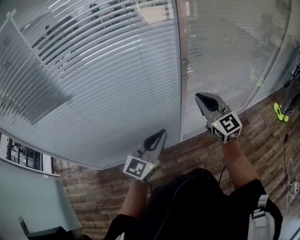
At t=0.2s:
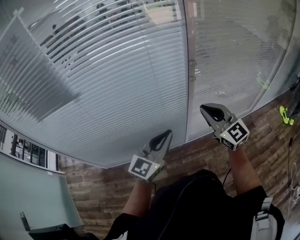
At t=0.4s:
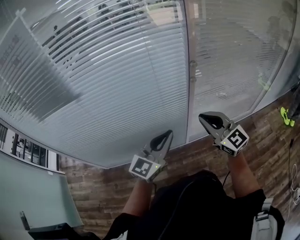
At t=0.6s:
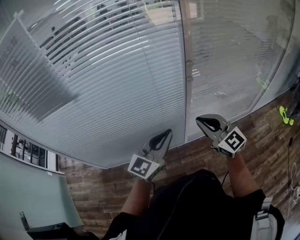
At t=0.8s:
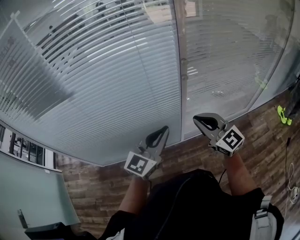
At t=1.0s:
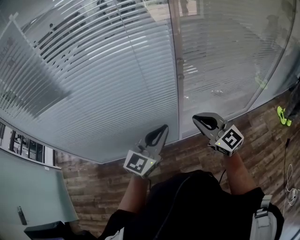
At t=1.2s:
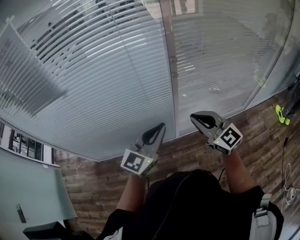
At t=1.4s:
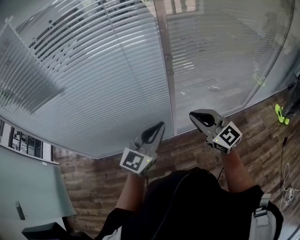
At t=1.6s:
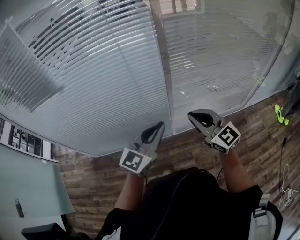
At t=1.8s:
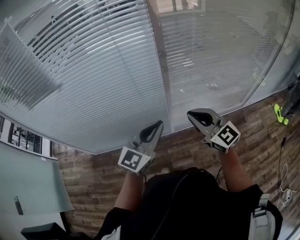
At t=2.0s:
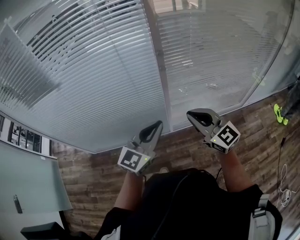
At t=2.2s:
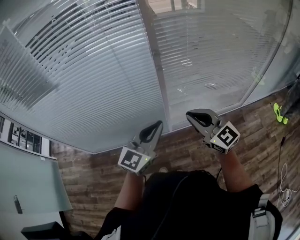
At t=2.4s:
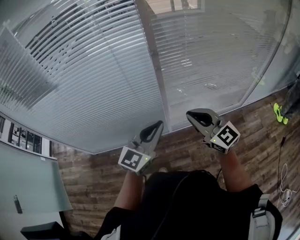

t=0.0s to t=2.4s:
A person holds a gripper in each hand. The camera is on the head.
t=0.0s to t=1.2s: The left gripper is displaced to the right by approximately 5 cm. The right gripper travels backward by some 10 cm.
t=1.2s to t=2.4s: Both grippers travel together to the right, roughly 5 cm.

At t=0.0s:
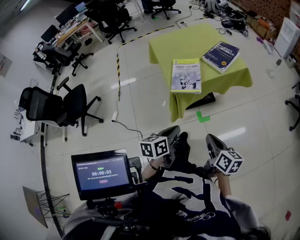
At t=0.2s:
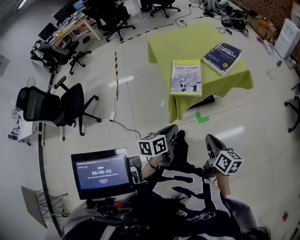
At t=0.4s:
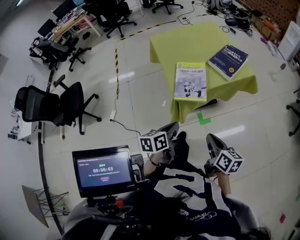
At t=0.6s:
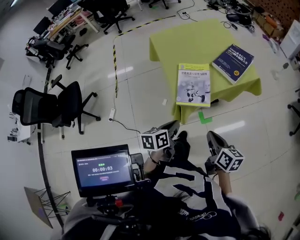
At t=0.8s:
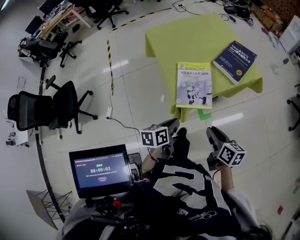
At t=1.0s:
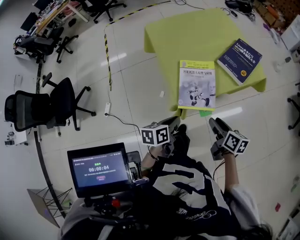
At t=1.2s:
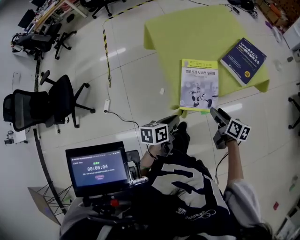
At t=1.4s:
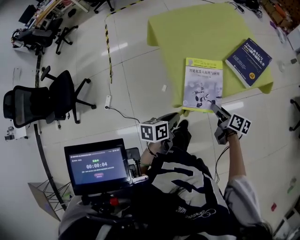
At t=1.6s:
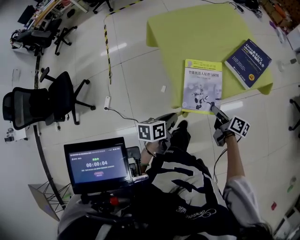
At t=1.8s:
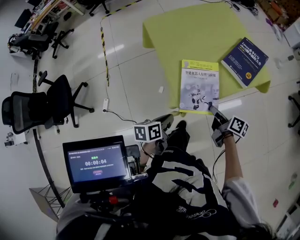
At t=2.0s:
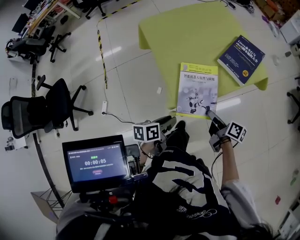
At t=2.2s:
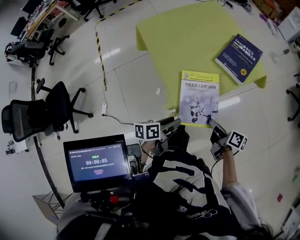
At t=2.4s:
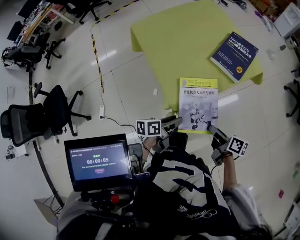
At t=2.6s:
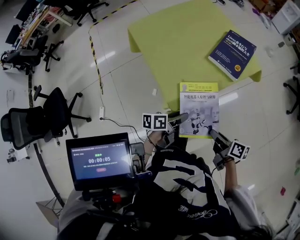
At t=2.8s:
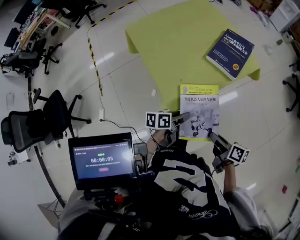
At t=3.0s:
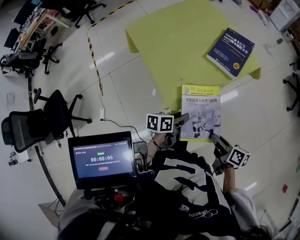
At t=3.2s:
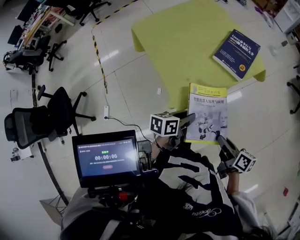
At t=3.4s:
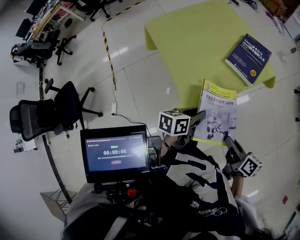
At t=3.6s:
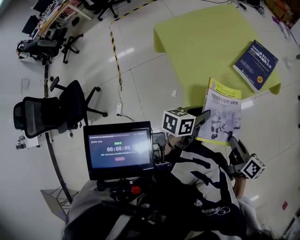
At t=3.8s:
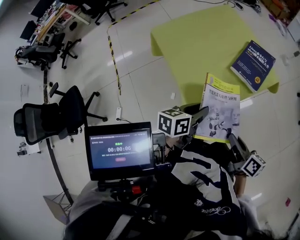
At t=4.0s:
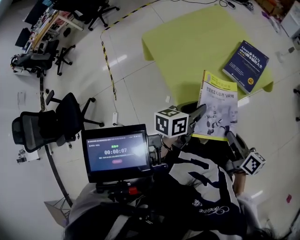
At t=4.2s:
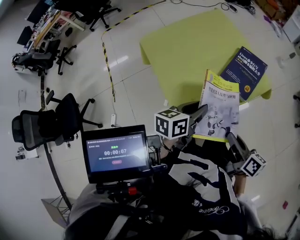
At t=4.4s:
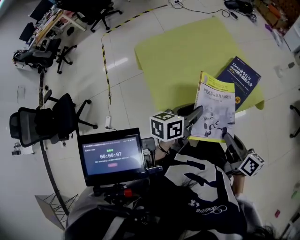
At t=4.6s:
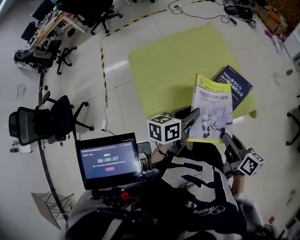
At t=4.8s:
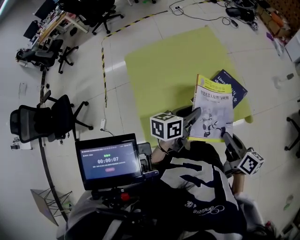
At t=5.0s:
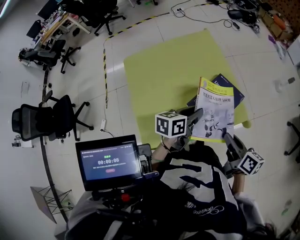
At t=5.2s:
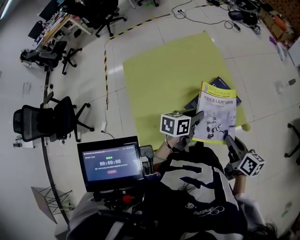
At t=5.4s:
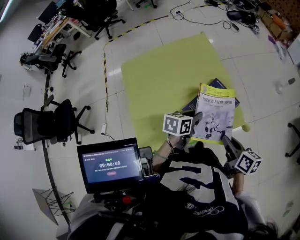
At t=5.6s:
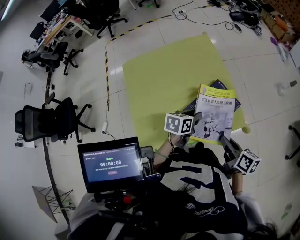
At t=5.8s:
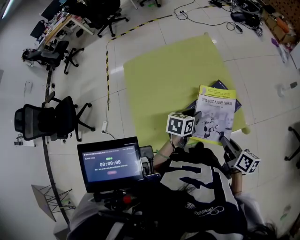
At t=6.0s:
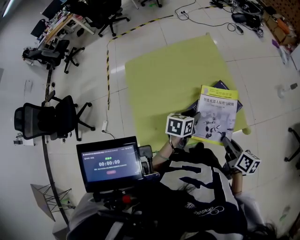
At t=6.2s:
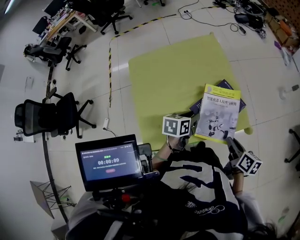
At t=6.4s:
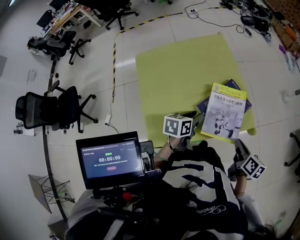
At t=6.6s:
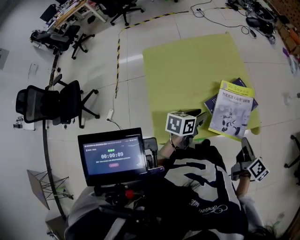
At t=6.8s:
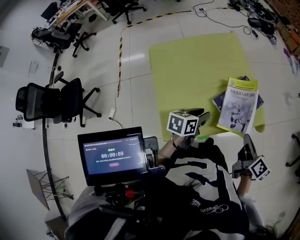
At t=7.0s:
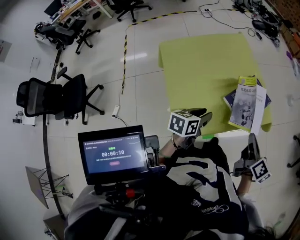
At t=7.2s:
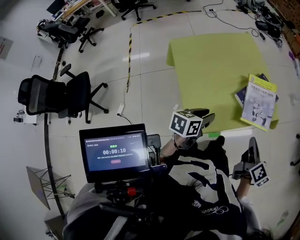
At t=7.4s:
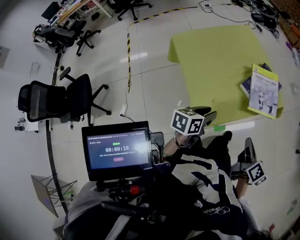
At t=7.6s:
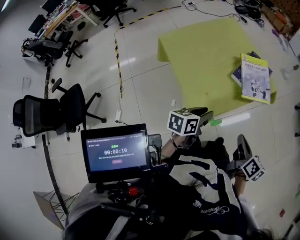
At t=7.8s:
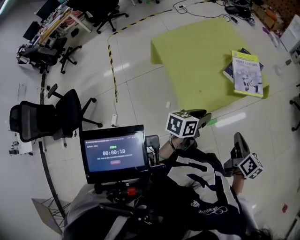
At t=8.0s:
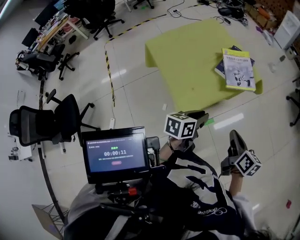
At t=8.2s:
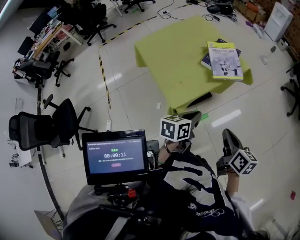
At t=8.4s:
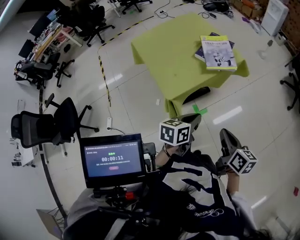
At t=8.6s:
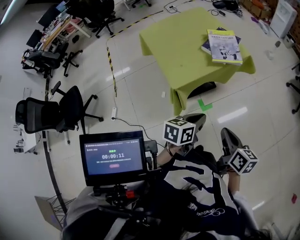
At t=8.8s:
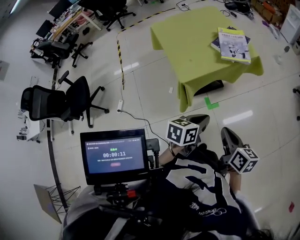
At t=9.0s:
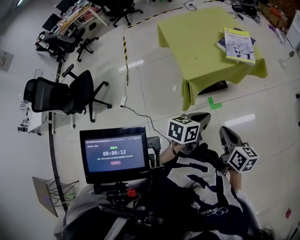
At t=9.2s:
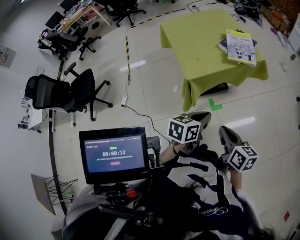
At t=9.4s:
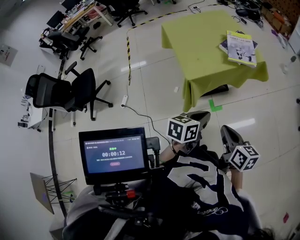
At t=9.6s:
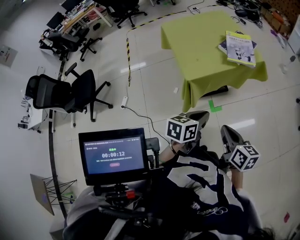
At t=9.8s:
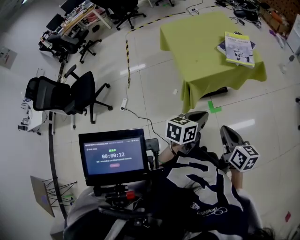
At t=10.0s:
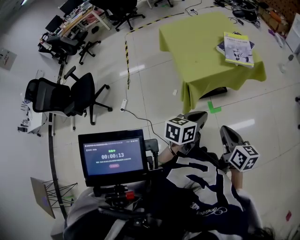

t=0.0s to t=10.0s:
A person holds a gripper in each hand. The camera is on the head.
t=0.0s to t=1.4s: The left gripper shifts about 25 cm forward, downward and to the left. The right gripper heads forward and downward, covering approximately 35 cm, swivels roughly 20 degrees, and opens its fingers.
t=1.4s to t=2.8s: The left gripper travels to the right by some 5 cm, rotates about 20 degrees, and opens; the right gripper heads backward and upward, covering about 15 cm, and closes up.
t=2.8s to t=4.2s: The right gripper moves forward and upward, some 15 cm. The left gripper shifts approximately 20 cm upward and forward, and swivels roughly 20 degrees.
t=4.2s to t=5.8s: The left gripper goes some 25 cm forward, to the right and downward, and swivels some 20 degrees. Meanwhile the right gripper is displaced forward and to the right by roughly 25 cm.
t=5.8s to t=7.2s: The left gripper shifts approximately 25 cm backward and to the left. Meanwhile the right gripper shifts approximately 15 cm backward and to the left, and changes its angle by some 30 degrees.
t=7.2s to t=8.6s: The right gripper goes some 30 cm backward. The left gripper heads backward and to the right, covering about 30 cm, and closes.
t=8.6s to t=10.0s: There are only small adjustments of the grippers.

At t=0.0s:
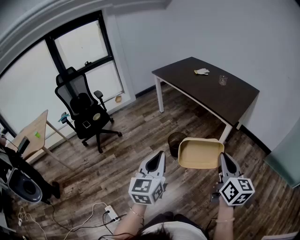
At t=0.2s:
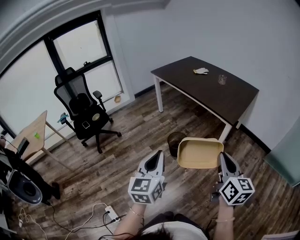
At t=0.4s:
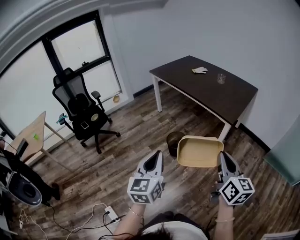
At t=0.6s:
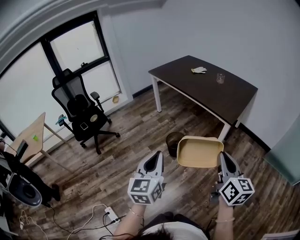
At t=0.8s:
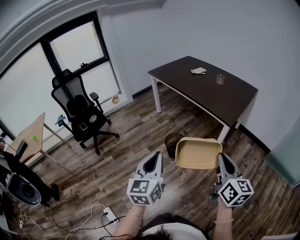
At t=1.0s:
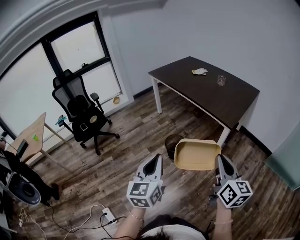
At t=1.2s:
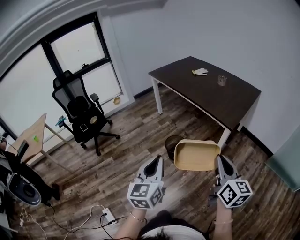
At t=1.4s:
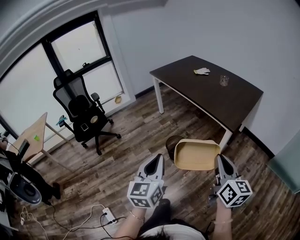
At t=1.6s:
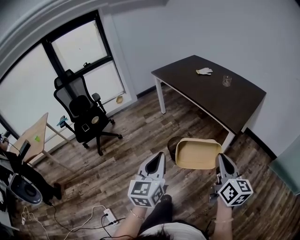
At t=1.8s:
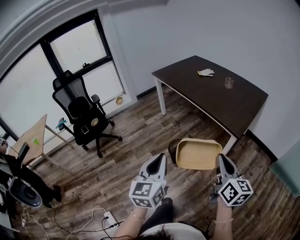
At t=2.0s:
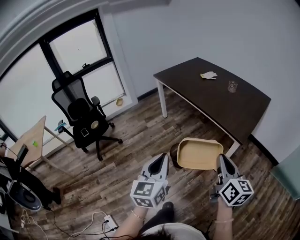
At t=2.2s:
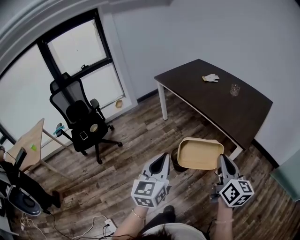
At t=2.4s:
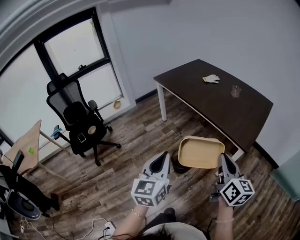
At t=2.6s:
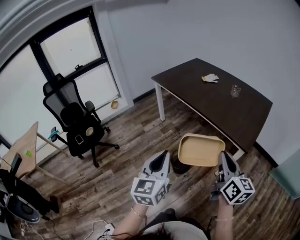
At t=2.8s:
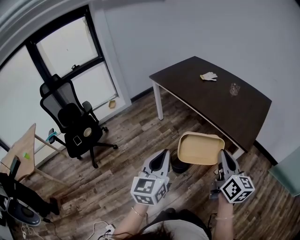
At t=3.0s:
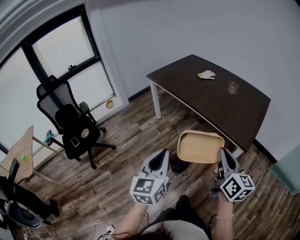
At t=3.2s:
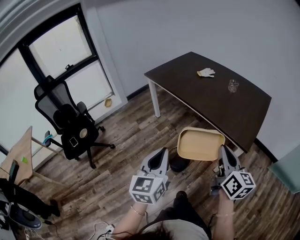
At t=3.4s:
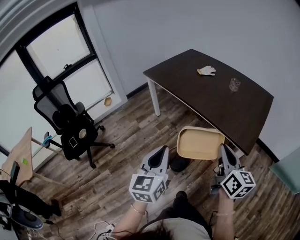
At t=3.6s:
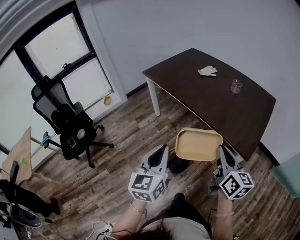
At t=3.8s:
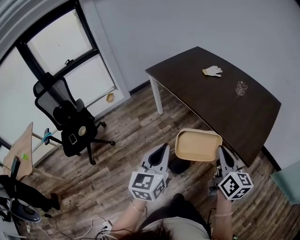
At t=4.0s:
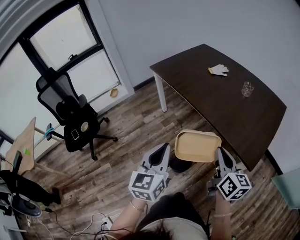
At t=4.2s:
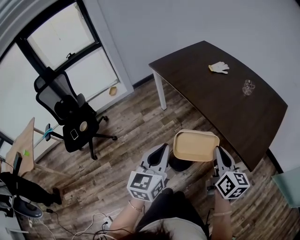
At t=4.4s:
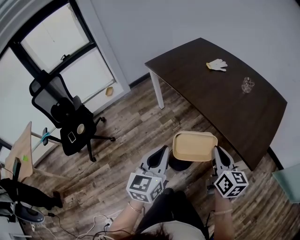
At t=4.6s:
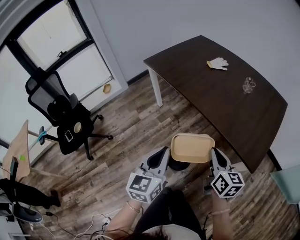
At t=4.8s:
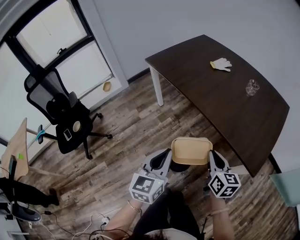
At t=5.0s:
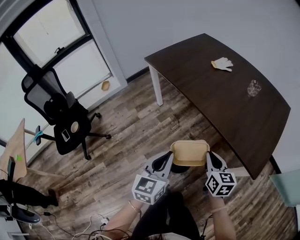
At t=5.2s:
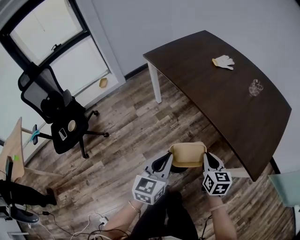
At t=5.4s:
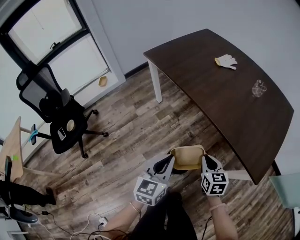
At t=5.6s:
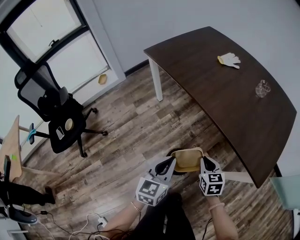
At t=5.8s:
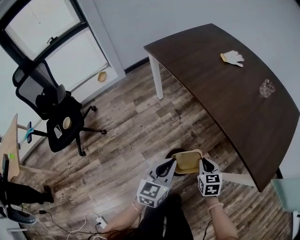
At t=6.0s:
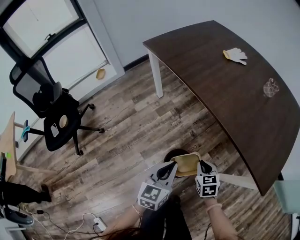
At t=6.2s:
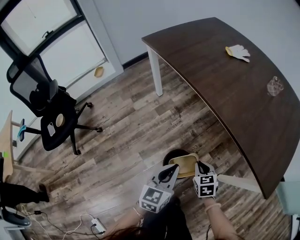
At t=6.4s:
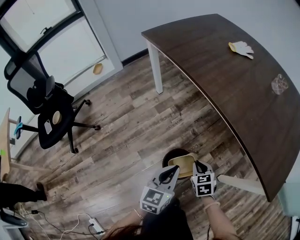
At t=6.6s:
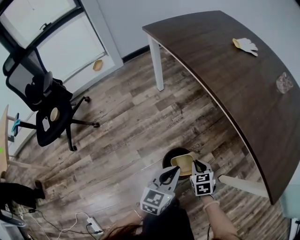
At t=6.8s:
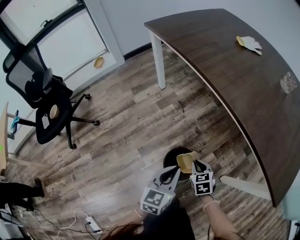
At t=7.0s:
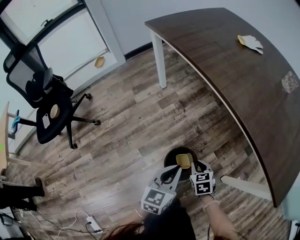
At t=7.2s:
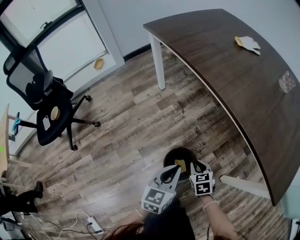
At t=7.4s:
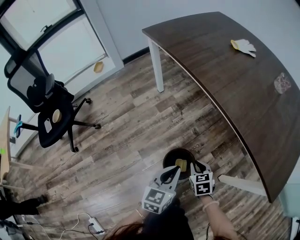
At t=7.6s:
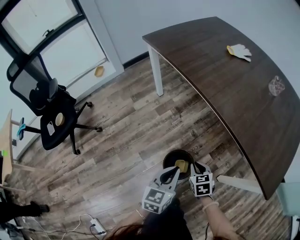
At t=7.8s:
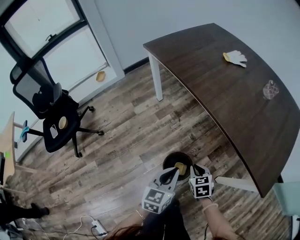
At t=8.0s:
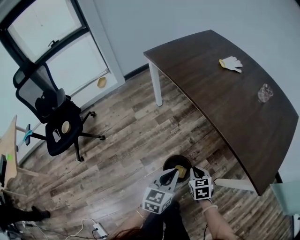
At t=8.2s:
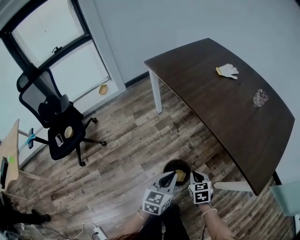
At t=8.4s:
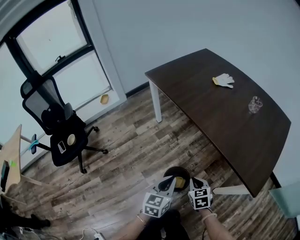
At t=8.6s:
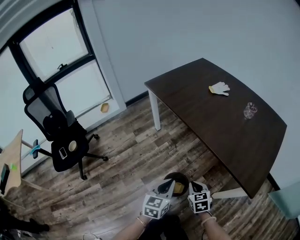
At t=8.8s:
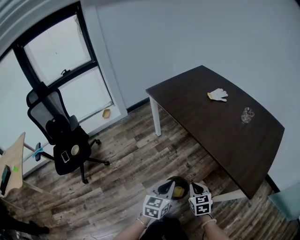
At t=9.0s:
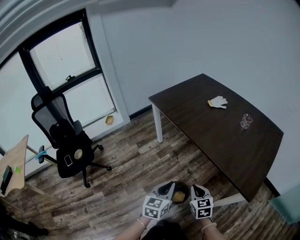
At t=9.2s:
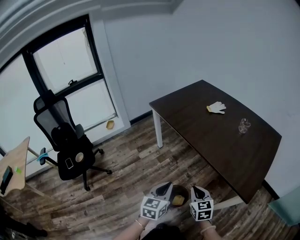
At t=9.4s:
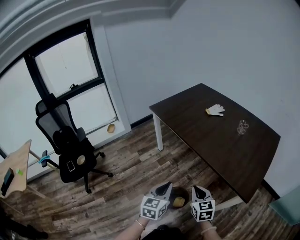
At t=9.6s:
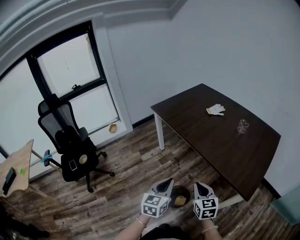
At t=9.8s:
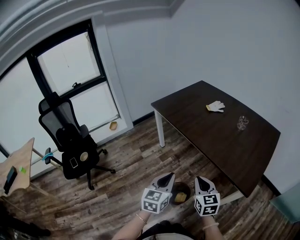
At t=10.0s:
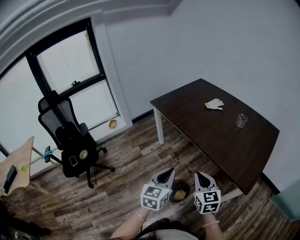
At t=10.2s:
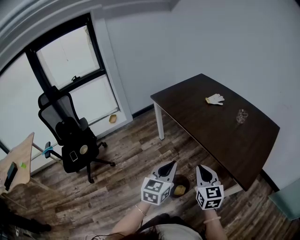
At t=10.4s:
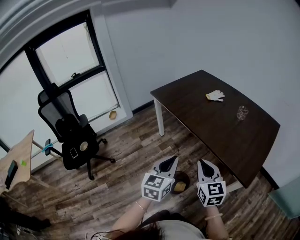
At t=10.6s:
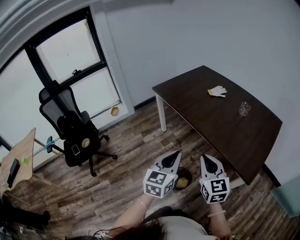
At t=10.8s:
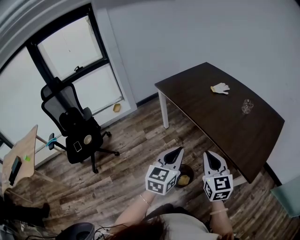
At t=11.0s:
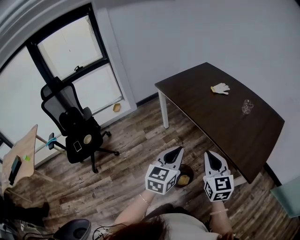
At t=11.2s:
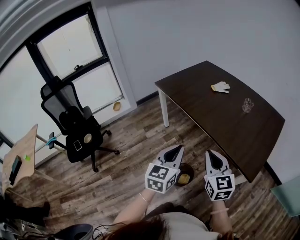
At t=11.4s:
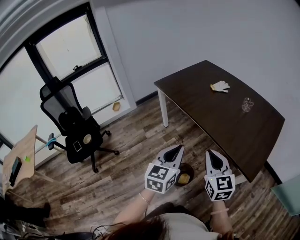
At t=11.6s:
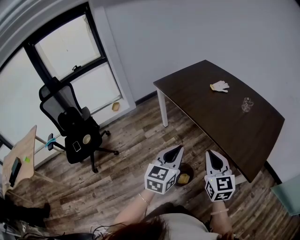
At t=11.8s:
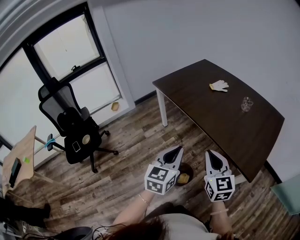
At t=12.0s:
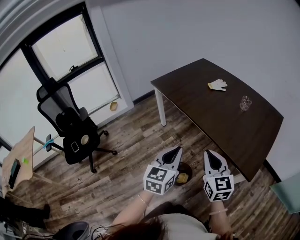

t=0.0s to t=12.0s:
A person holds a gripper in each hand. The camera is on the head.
t=0.0s to t=1.6s: Both grippers travel together forward and to the right, about 15 cm.
t=1.6s to t=3.0s: Both grippers travel together forward and to the left, some 30 cm.
t=3.0s to t=4.4s: The left gripper heads forward, covering roughly 25 cm, while the right gripper travels forward and downward by about 30 cm.
t=4.4s to t=6.0s: The two grippers go about 35 cm downward and forward. The right gripper tilts its fingers some 30 degrees downward.
t=6.0s to t=7.6s: Both grippers move downward, about 10 cm.
t=7.6s to t=9.0s: The left gripper is displaced upward by some 25 cm. Meanwhile the right gripper travels upward and backward by approximately 35 cm.
t=9.0s to t=10.4s: Both grippers move upward, approximately 15 cm. The right gripper rotates some 20 degrees.
t=10.4s to t=12.0s: There are only small adjustments of the grippers.
